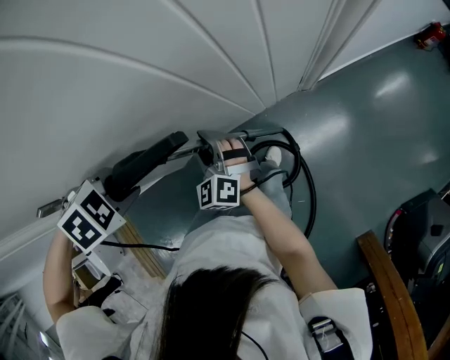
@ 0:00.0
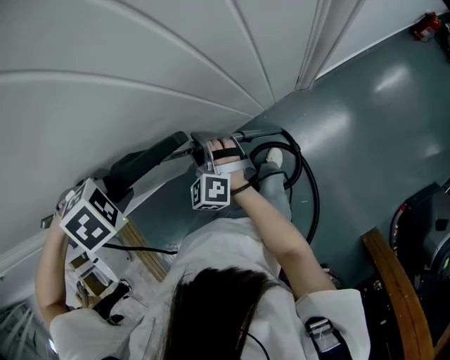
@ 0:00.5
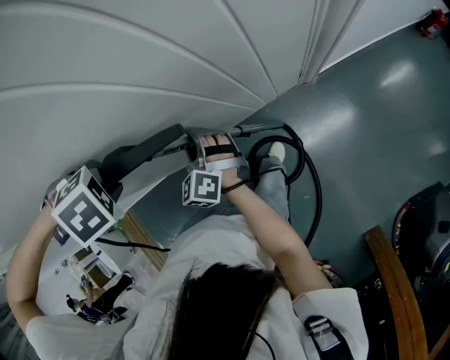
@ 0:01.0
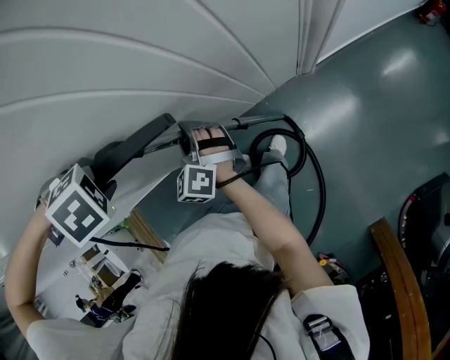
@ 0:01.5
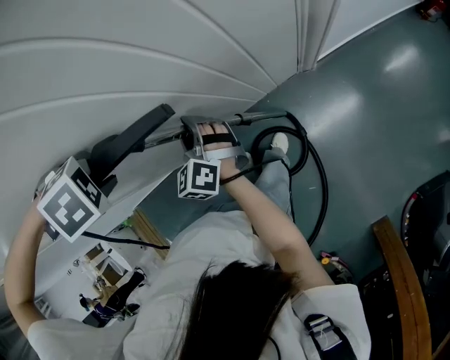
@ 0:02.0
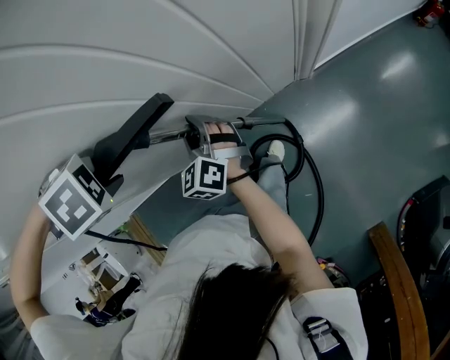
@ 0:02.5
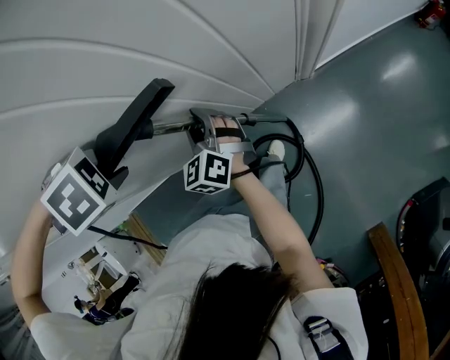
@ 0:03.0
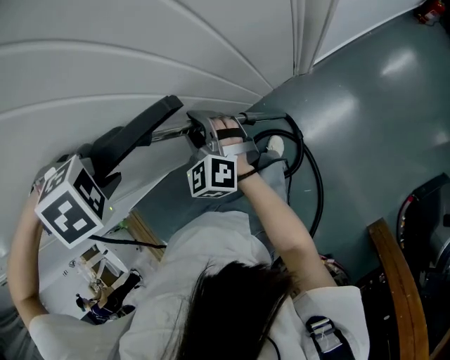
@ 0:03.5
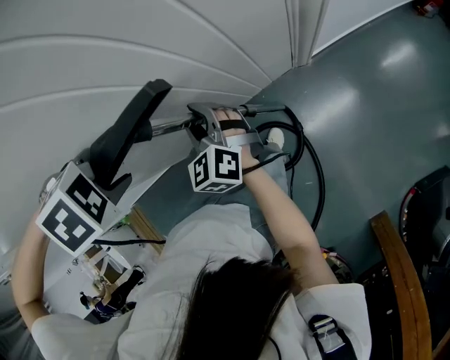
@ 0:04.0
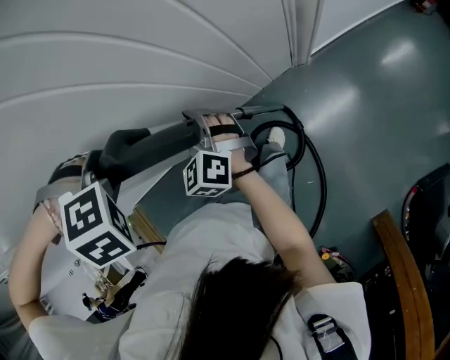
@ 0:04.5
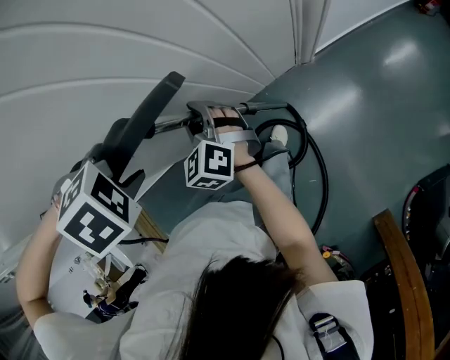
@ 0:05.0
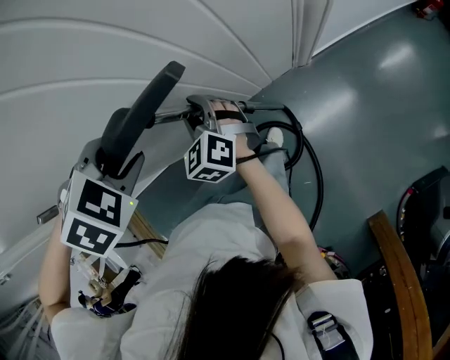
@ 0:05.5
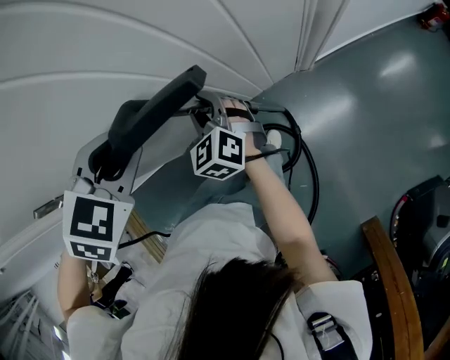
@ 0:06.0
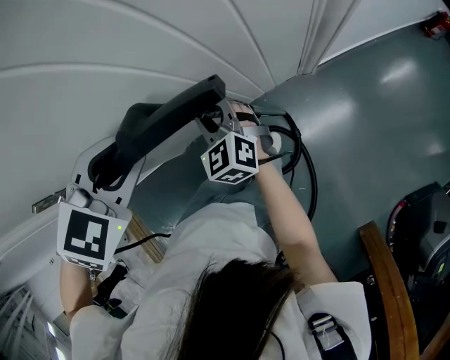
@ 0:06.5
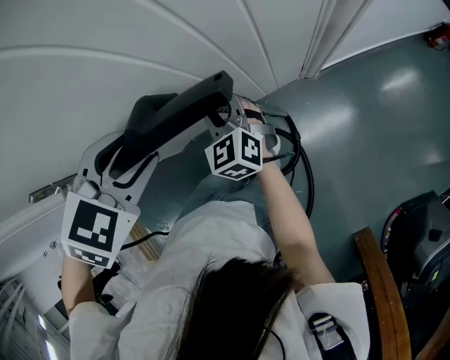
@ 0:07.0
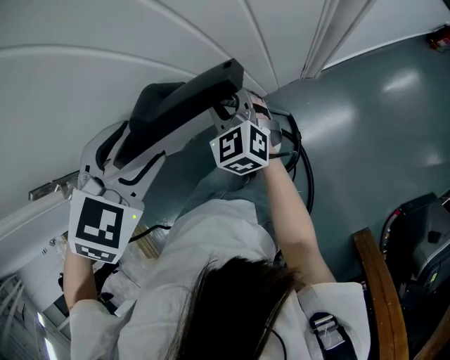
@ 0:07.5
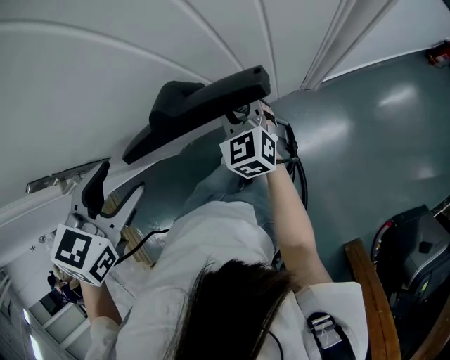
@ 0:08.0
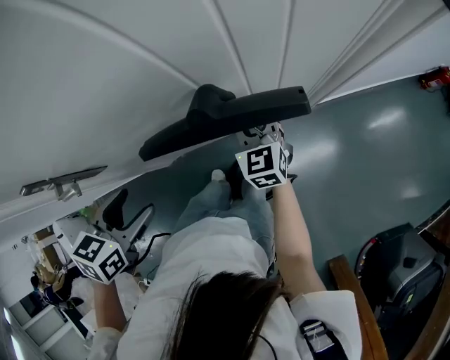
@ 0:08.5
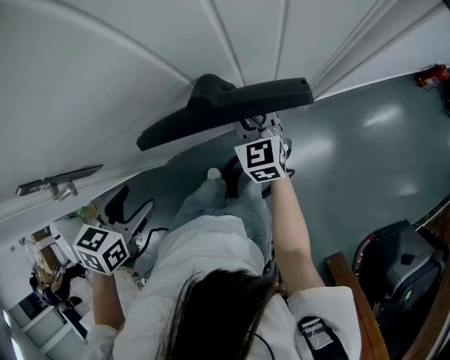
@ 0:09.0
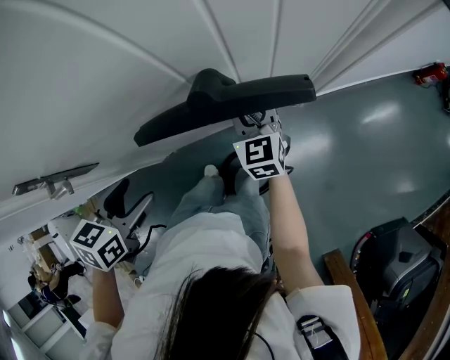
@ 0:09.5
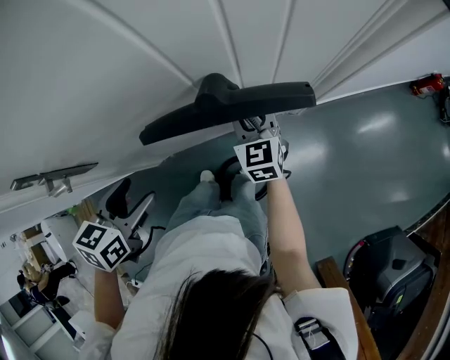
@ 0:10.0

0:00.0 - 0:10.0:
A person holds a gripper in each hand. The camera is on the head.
0:00.0 - 0:02.0: The left gripper changes place by approximately 5 cm, and changes its angle by approximately 20 degrees.
0:02.0 - 0:04.0: The left gripper moves about 5 cm. Meanwhile the right gripper moves some 5 cm.
0:04.0 - 0:06.0: The left gripper changes its angle by roughly 40 degrees.
0:06.0 - 0:08.0: The left gripper is displaced to the left and backward by roughly 10 cm, changes its angle by about 30 degrees, and opens up.
0:08.0 - 0:10.0: The left gripper goes roughly 10 cm downward, and swivels approximately 20 degrees.

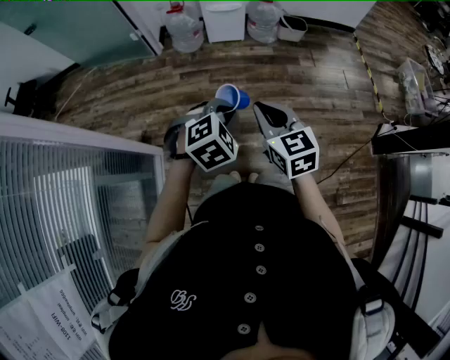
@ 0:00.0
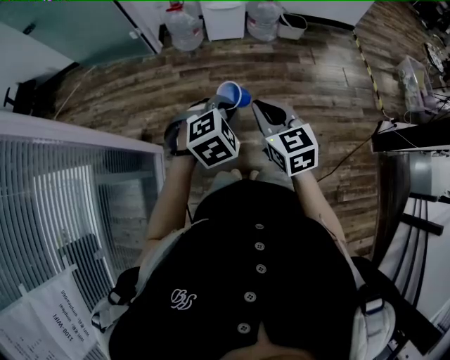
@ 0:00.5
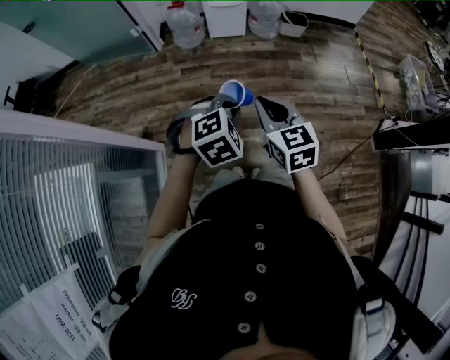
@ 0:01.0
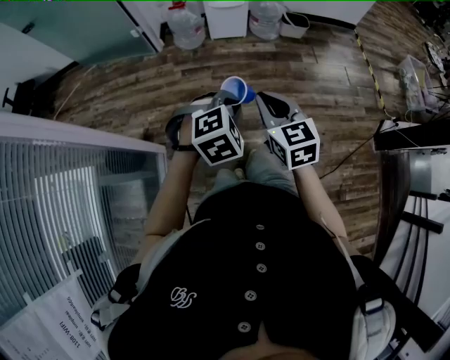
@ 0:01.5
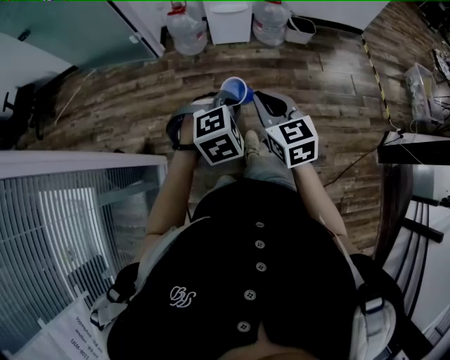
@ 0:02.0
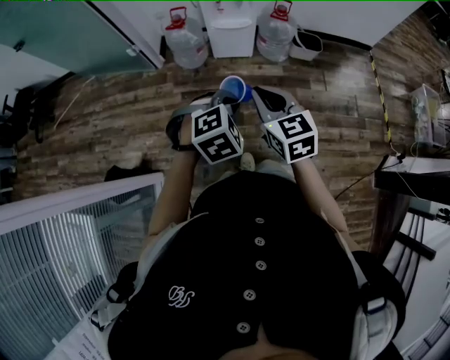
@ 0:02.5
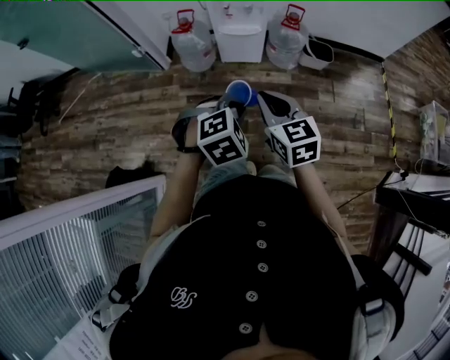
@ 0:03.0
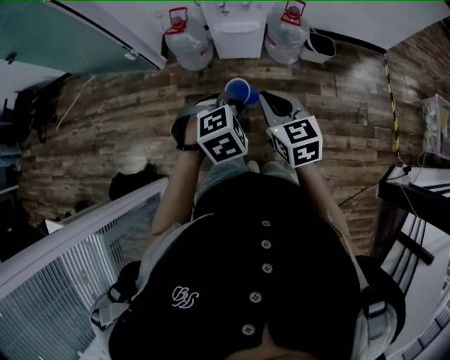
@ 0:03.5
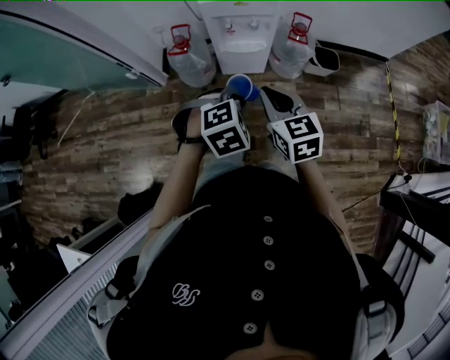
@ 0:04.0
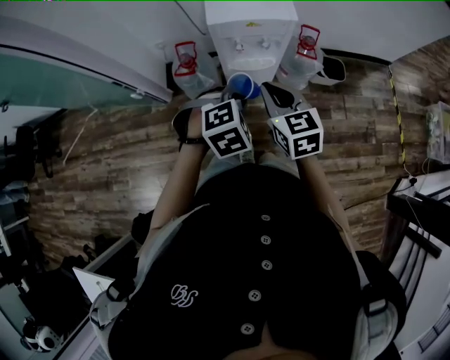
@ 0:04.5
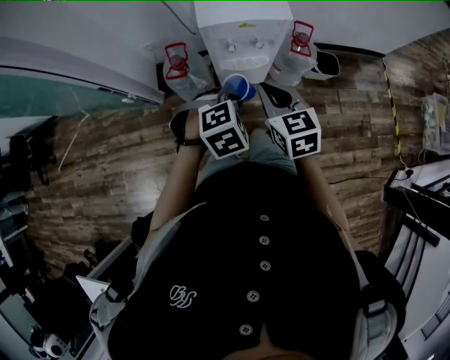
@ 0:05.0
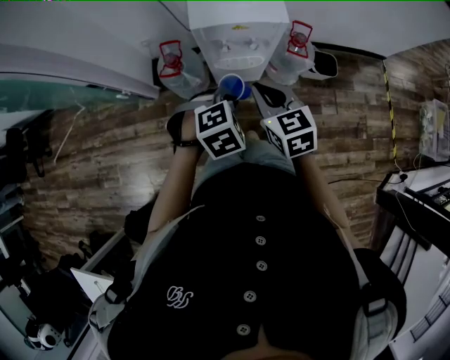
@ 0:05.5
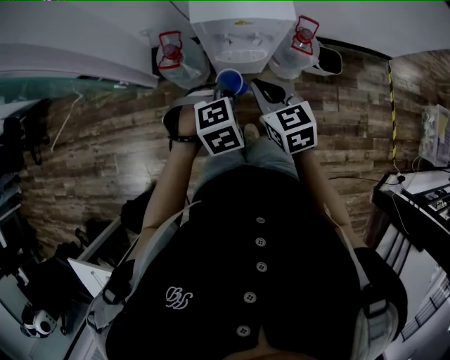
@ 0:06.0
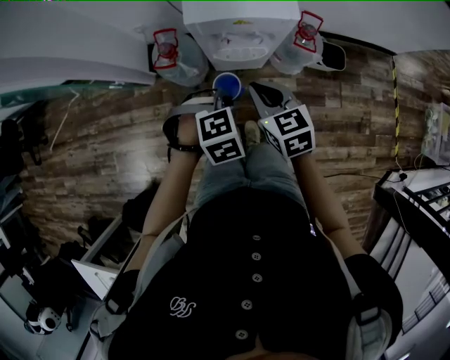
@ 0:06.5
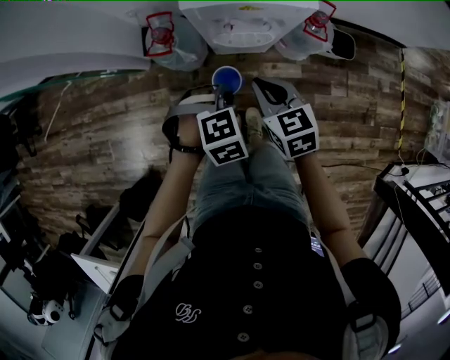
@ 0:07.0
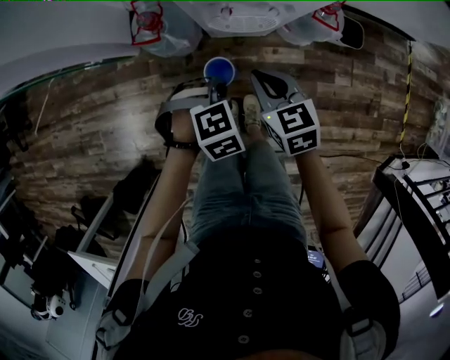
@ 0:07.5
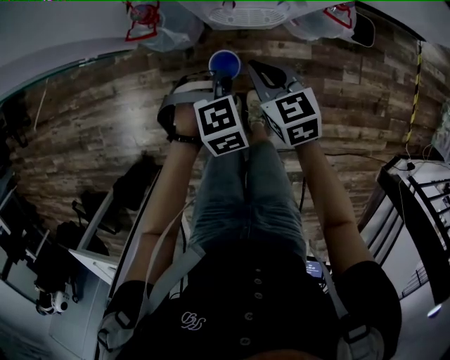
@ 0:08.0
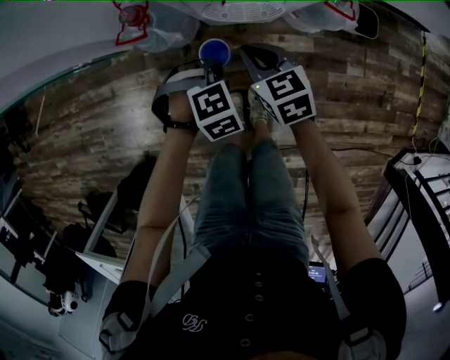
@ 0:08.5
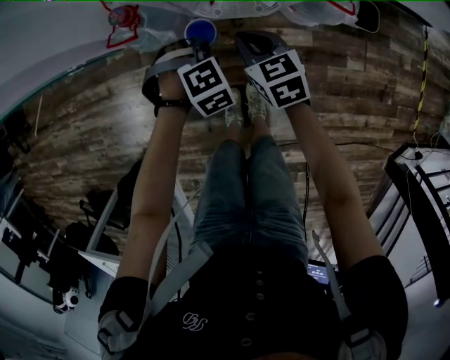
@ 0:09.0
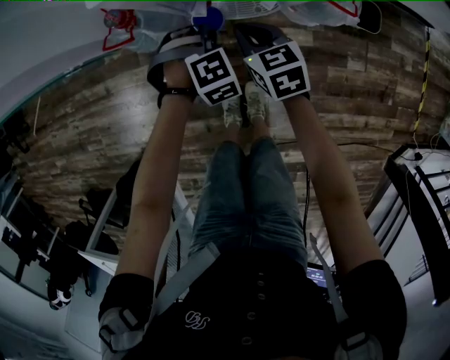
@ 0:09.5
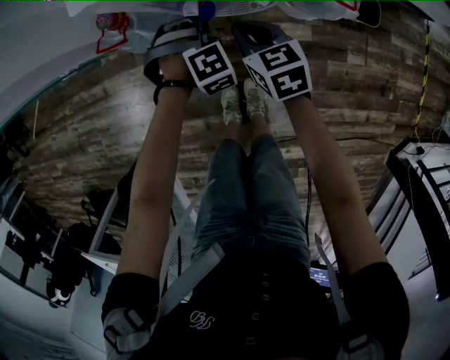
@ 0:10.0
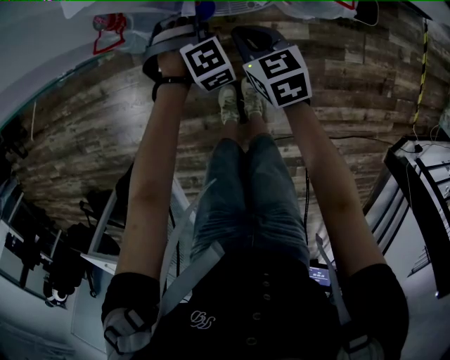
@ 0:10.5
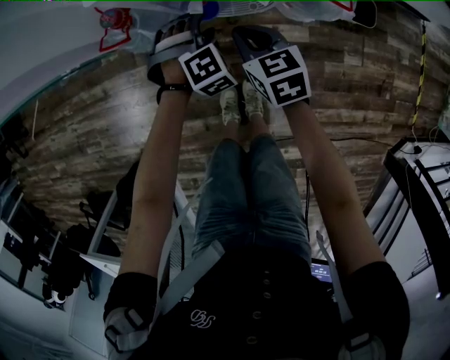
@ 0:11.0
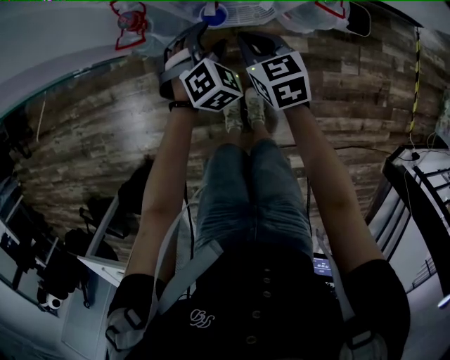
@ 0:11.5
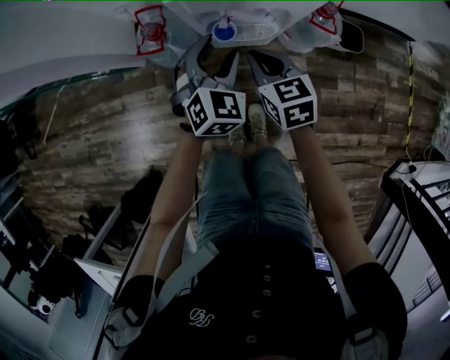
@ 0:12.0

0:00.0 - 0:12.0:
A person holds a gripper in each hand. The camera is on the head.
0:00.0 - 0:02.0: Both grippers move forward, approximately 10 cm.
0:02.0 - 0:04.0: The two grippers travel together, forward, approximately 40 cm.
0:04.0 - 0:06.0: Both grippers move forward, approximately 15 cm.
0:06.0 - 0:08.0: The grippers both shift downward by approximately 20 cm.
0:08.0 - 0:10.0: The right gripper moves downward, approximately 10 cm. The left gripper moves some 20 cm.
0:10.0 - 0:12.0: The left gripper goes about 20 cm upward, tips its fingers upward by roughly 30 degrees, and opens, while the right gripper goes roughly 15 cm upward.

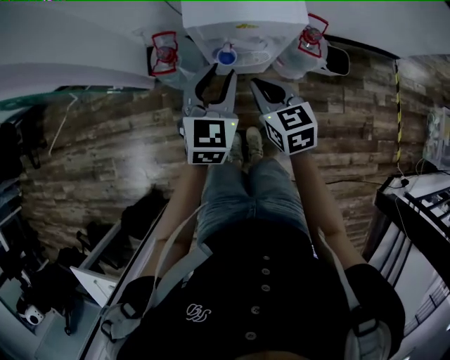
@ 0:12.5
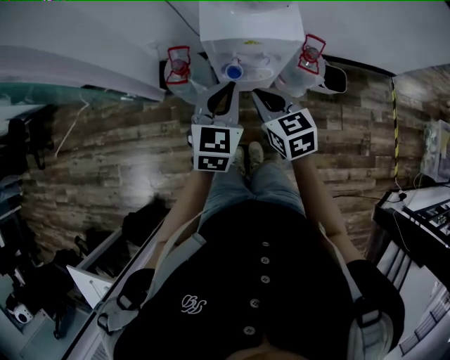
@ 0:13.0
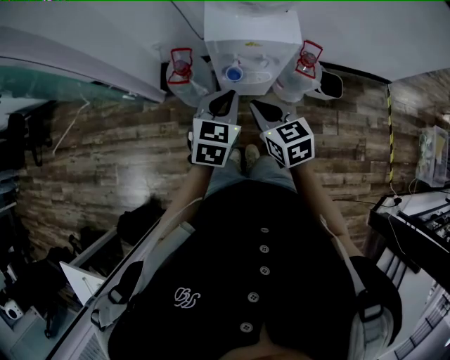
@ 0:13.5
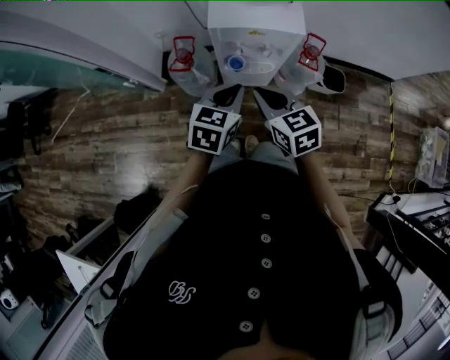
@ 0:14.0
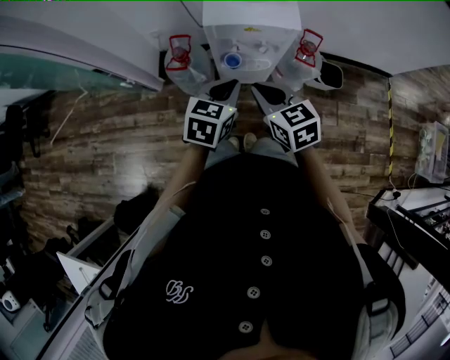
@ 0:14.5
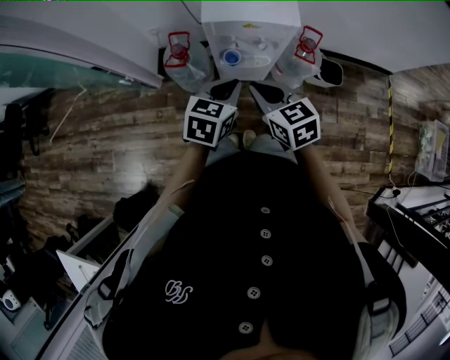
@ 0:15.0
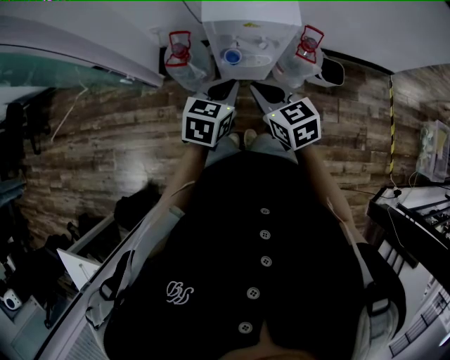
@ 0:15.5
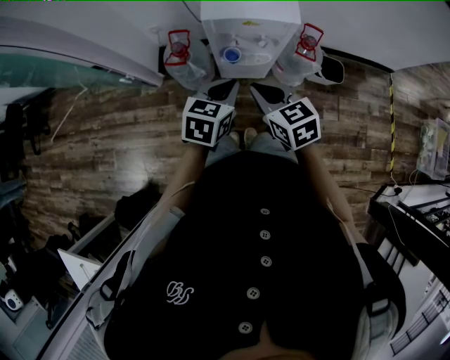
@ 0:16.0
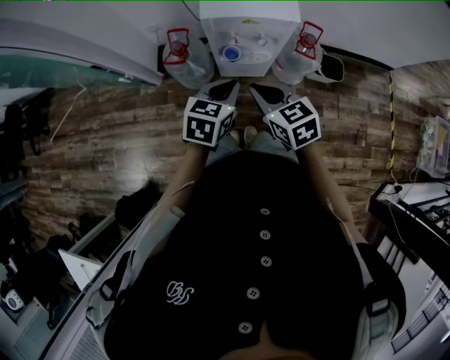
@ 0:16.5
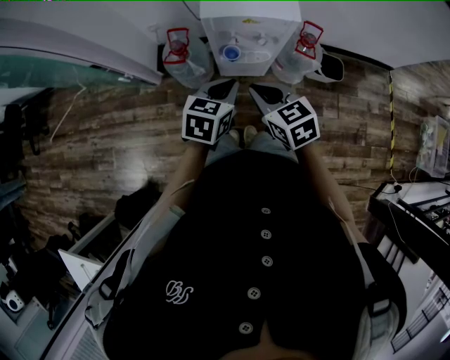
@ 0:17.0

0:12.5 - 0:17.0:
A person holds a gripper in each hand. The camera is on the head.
0:12.5 - 0:14.5: The right gripper heads upward and backward, covering about 10 cm, while the left gripper goes roughly 5 cm backward, turns by approximately 20 degrees, and closes its fingers.
0:14.5 - 0:17.0: There are only small adjustments of the grippers.
